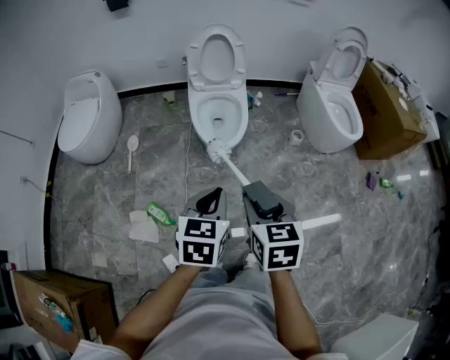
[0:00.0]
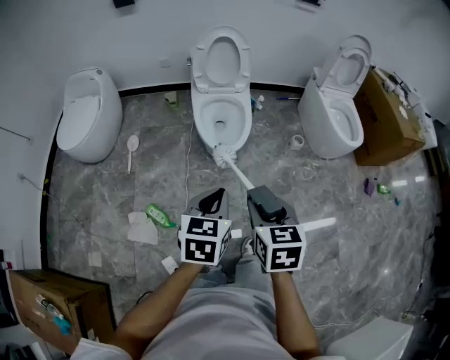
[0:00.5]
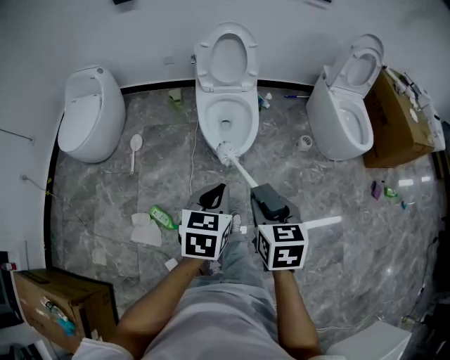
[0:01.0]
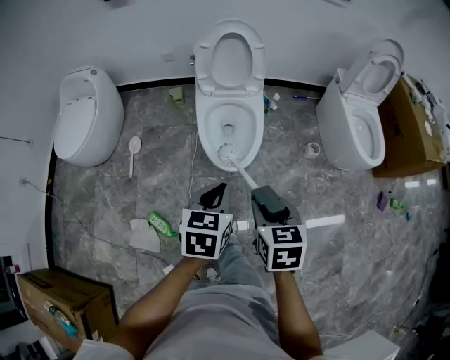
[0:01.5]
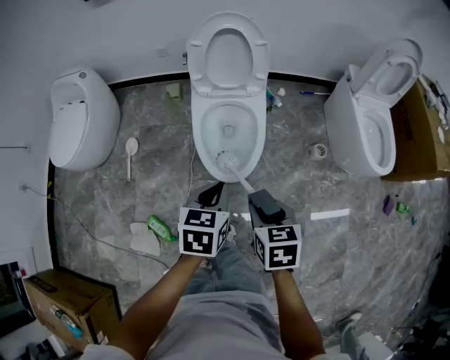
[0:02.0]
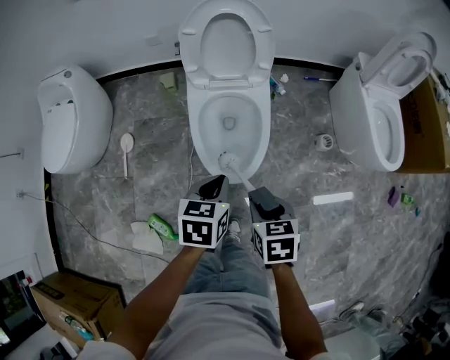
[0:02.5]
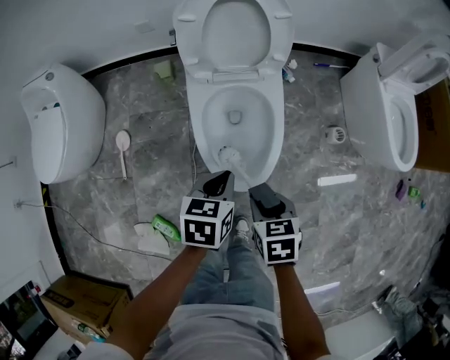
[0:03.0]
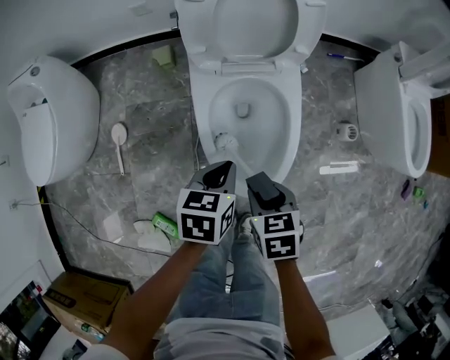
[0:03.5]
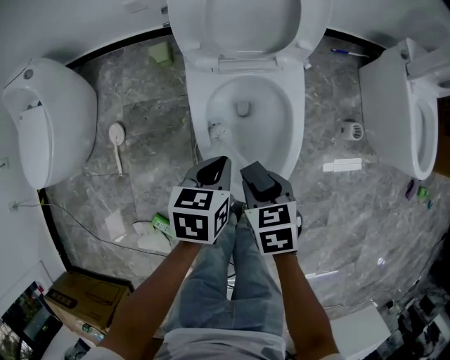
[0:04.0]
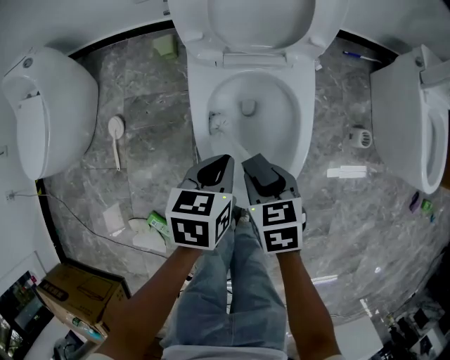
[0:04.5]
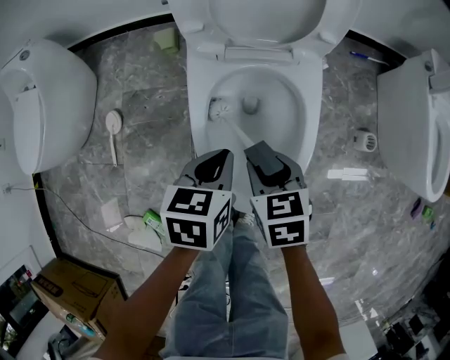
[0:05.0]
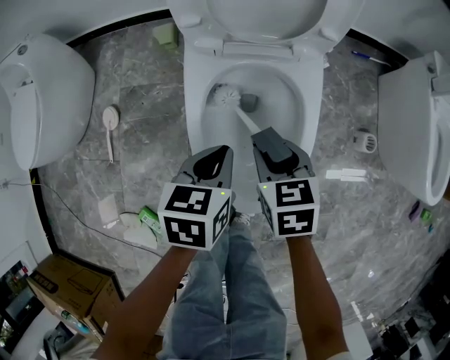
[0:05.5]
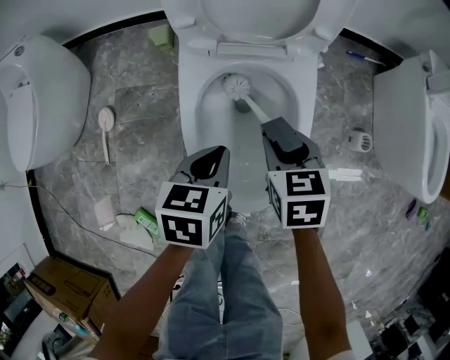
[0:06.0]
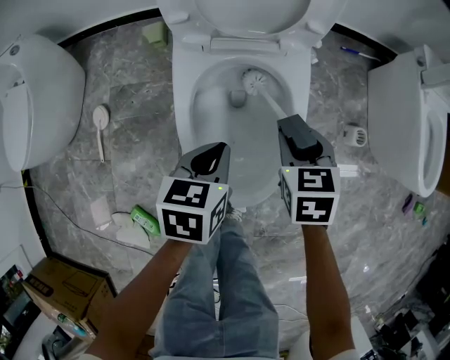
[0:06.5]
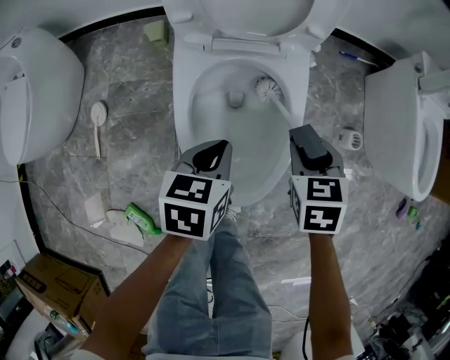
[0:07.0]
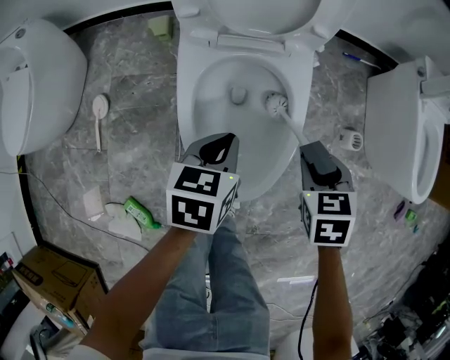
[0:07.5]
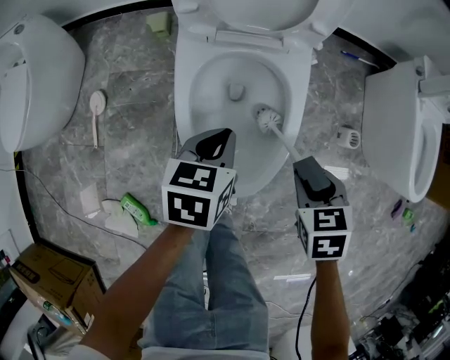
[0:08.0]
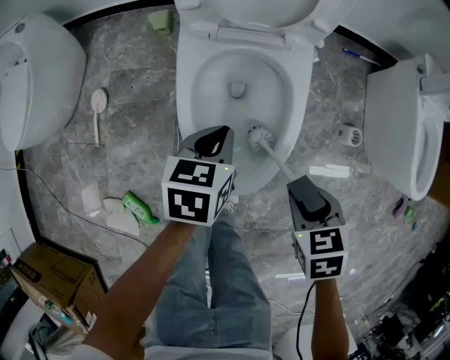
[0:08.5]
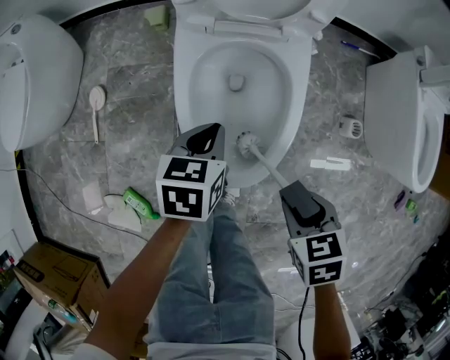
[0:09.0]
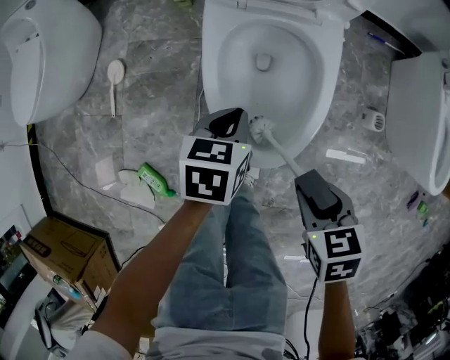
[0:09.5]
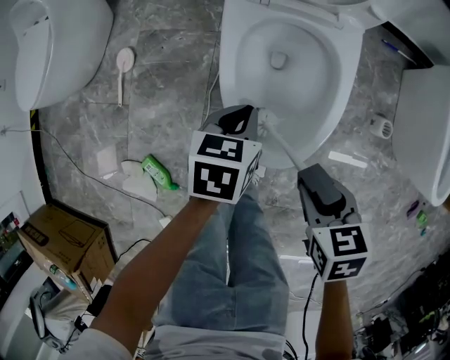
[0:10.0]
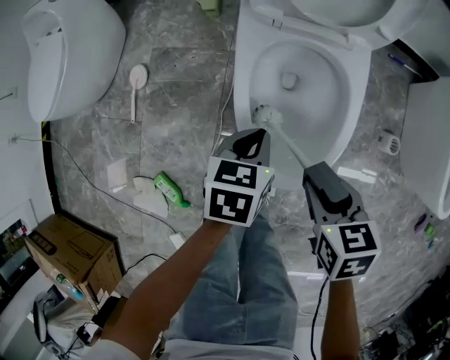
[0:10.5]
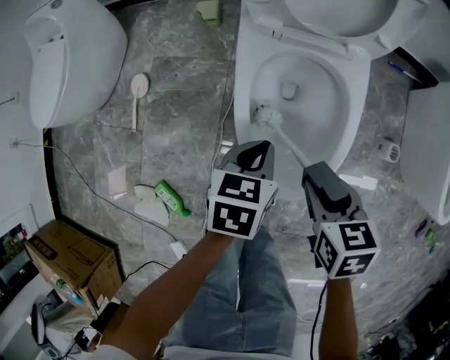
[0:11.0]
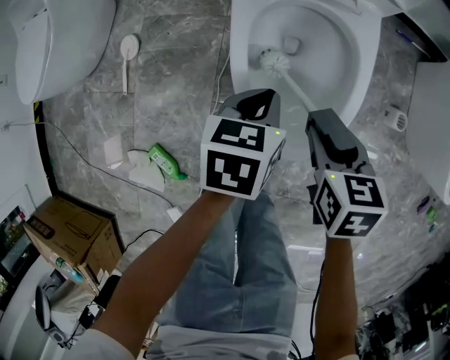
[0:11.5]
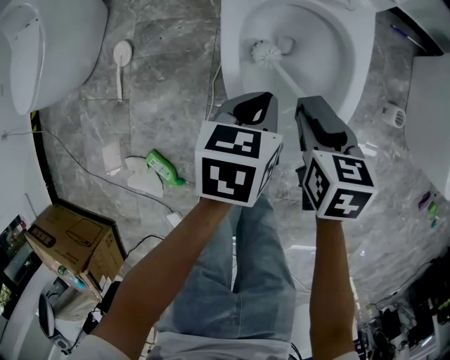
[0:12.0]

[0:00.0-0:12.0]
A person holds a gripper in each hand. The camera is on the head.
0:00.0 to 0:02.0: The left gripper travels forward by approximately 30 cm; the right gripper shifts some 35 cm forward and downward.
0:02.0 to 0:04.0: The left gripper is displaced downward and forward by approximately 30 cm. Meanwhile the right gripper moves downward, forward and to the left, some 35 cm.
0:04.0 to 0:06.0: The right gripper is displaced forward and to the right by about 10 cm, while the left gripper is displaced downward by about 5 cm.
0:06.0 to 0:08.0: The right gripper shifts about 15 cm to the right and backward.
0:08.0 to 0:10.0: The right gripper shifts some 10 cm to the left and backward. The left gripper moves to the left, approximately 5 cm.
0:10.0 to 0:12.0: The right gripper moves forward and downward, some 10 cm.

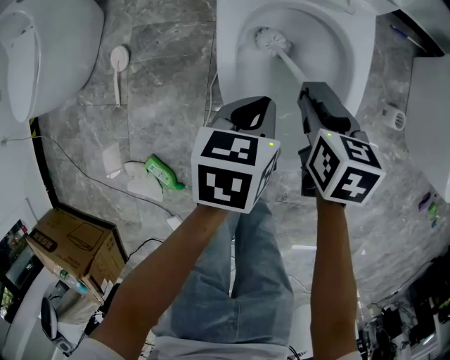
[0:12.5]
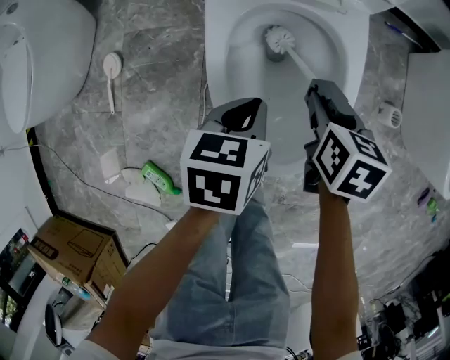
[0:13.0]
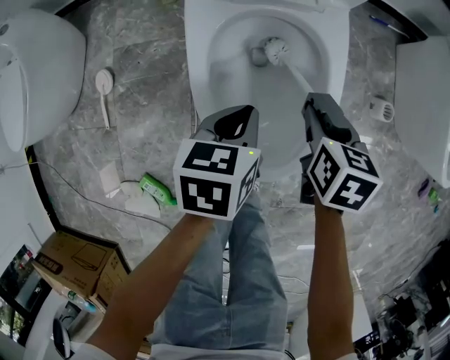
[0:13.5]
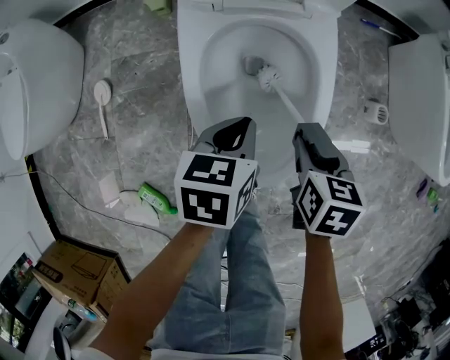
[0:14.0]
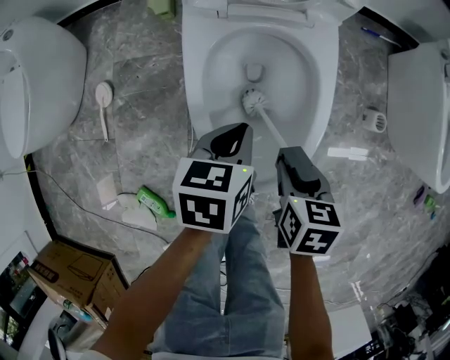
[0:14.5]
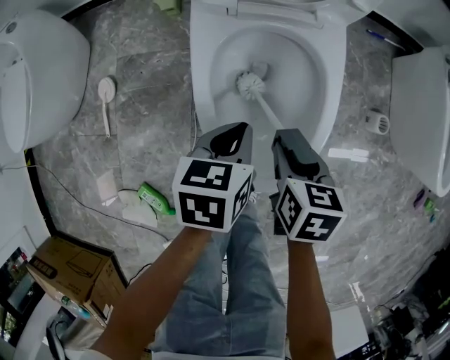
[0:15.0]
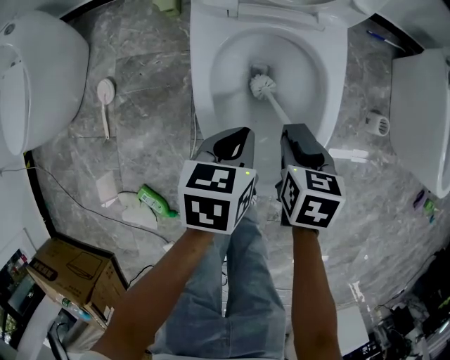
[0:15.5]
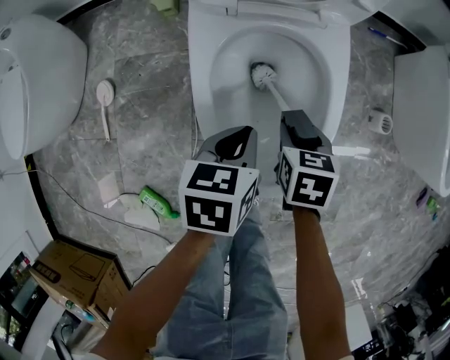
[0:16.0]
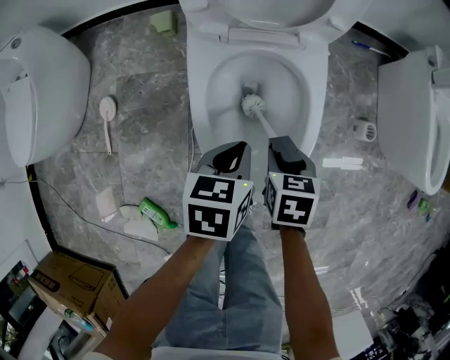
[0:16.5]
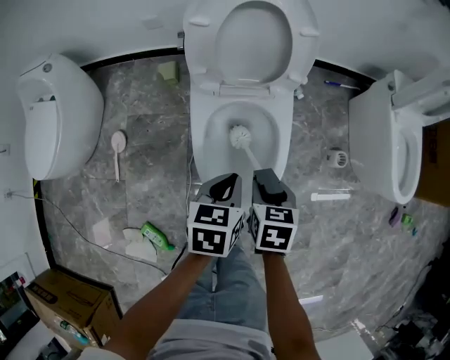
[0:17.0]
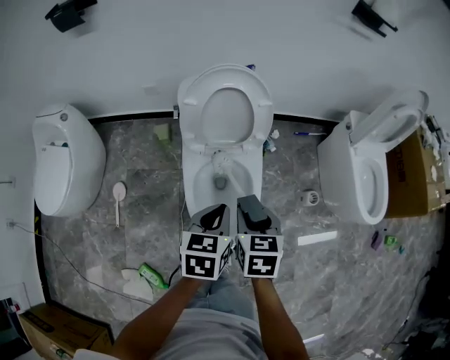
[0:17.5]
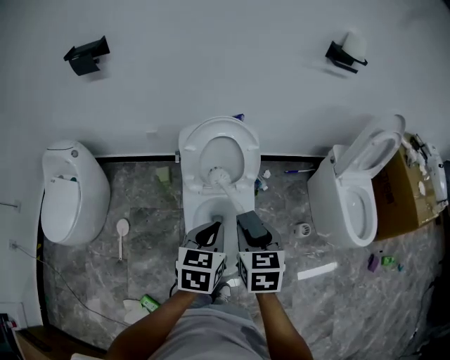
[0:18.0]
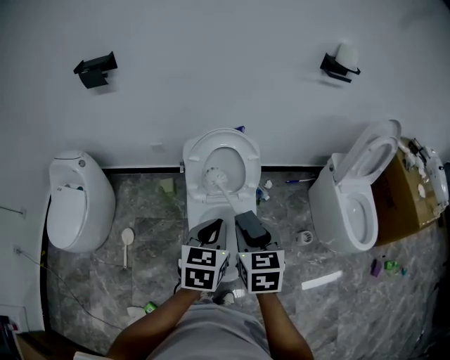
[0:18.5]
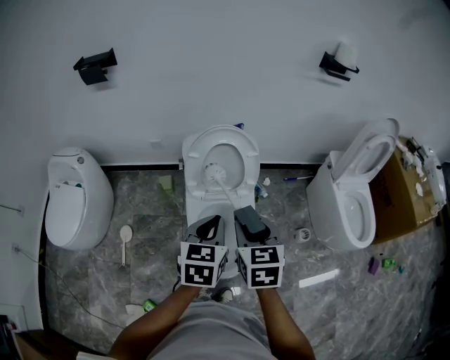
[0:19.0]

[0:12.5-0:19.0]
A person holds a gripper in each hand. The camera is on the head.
0:12.5 to 0:14.5: The right gripper moves backward and to the right, some 10 cm.
0:14.5 to 0:17.0: The grippers both shift upward by about 15 cm.
0:17.0 to 0:19.0: The two grippers go about 30 cm upward. The right gripper swivels roughly 30 degrees; the left gripper swivels roughly 20 degrees.

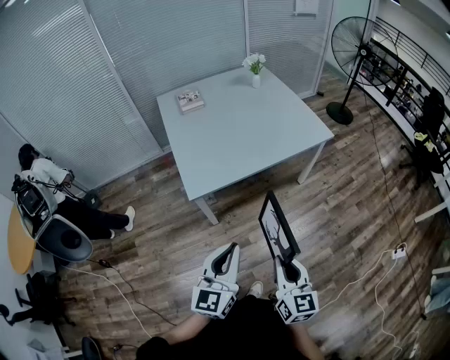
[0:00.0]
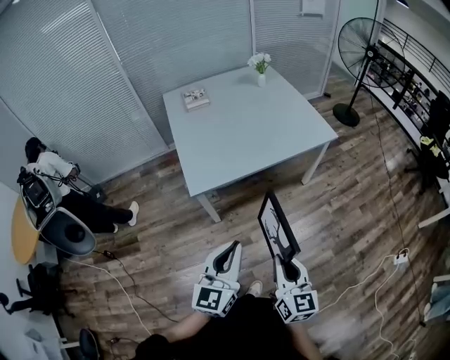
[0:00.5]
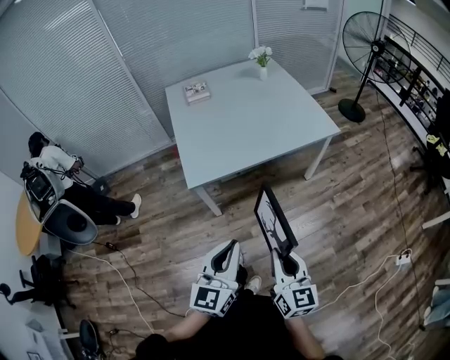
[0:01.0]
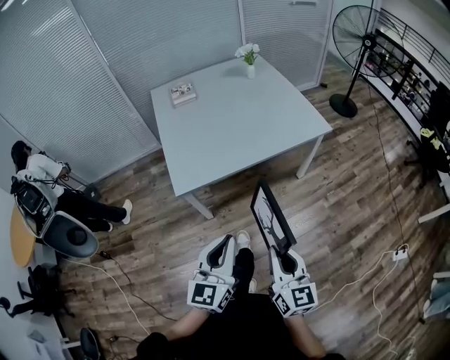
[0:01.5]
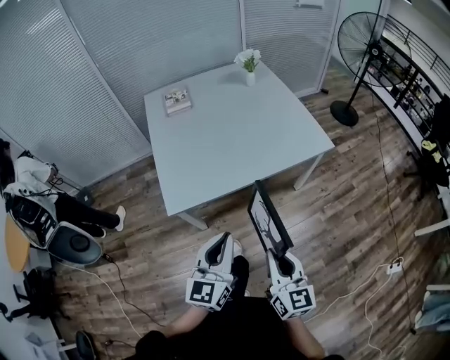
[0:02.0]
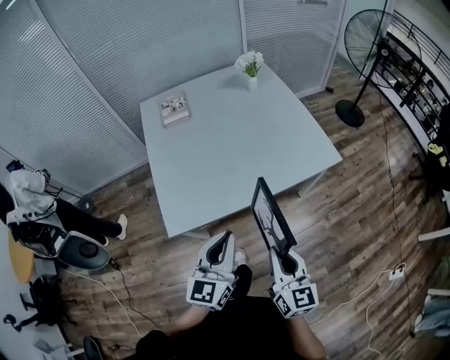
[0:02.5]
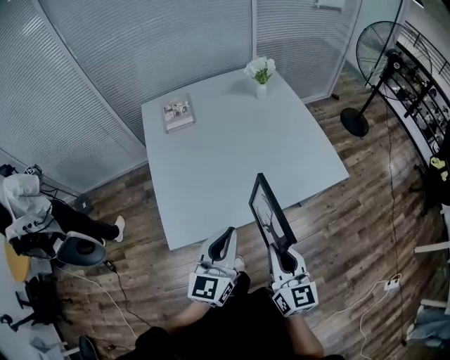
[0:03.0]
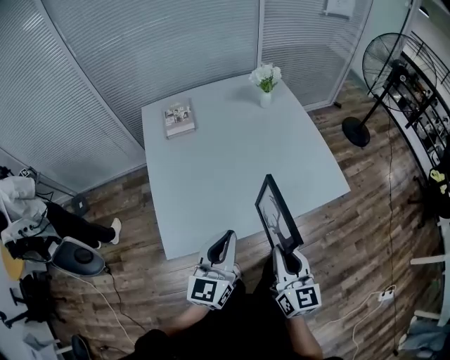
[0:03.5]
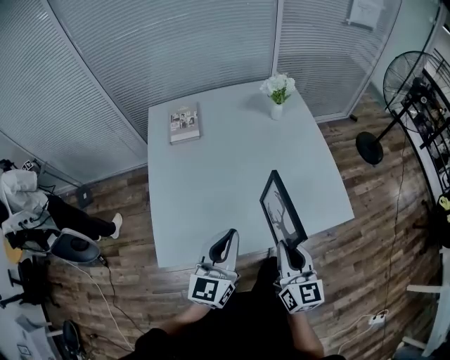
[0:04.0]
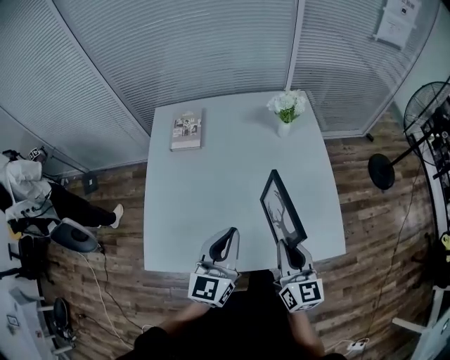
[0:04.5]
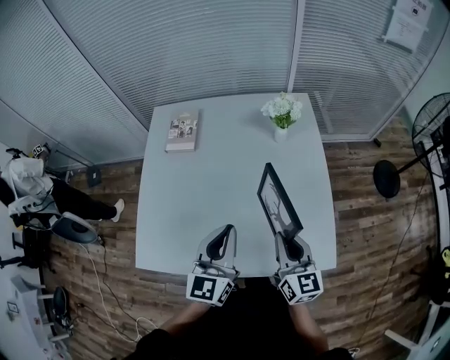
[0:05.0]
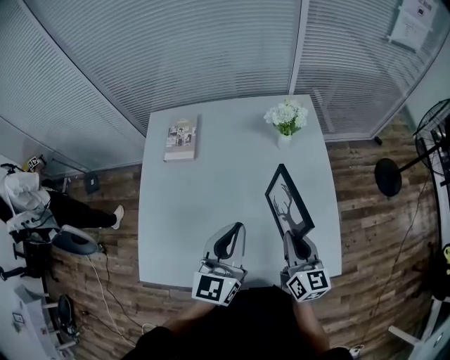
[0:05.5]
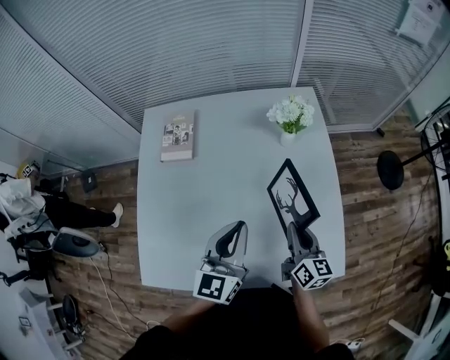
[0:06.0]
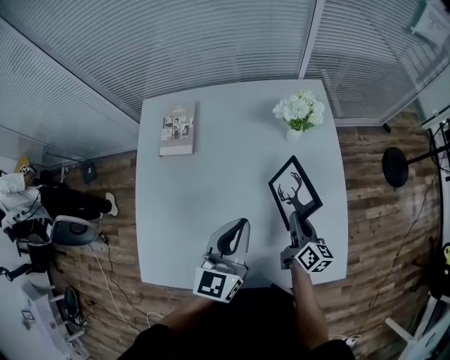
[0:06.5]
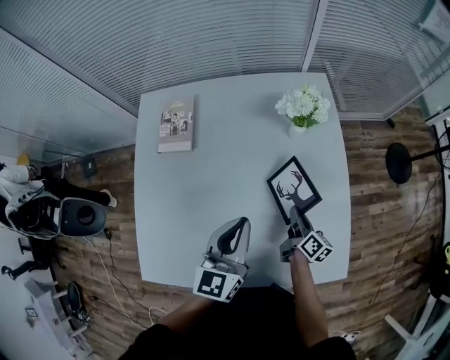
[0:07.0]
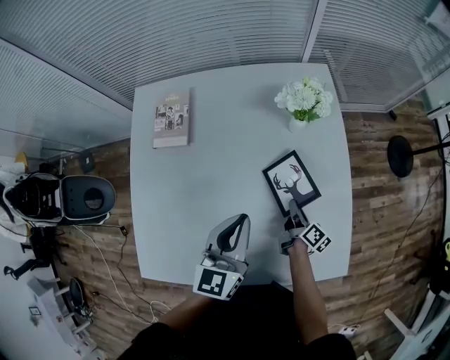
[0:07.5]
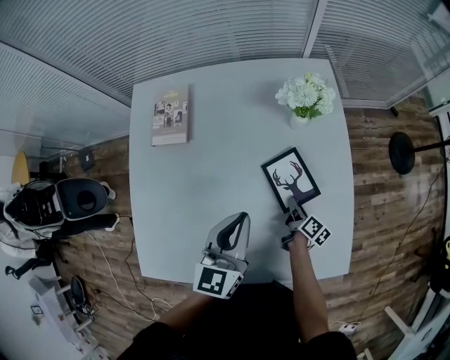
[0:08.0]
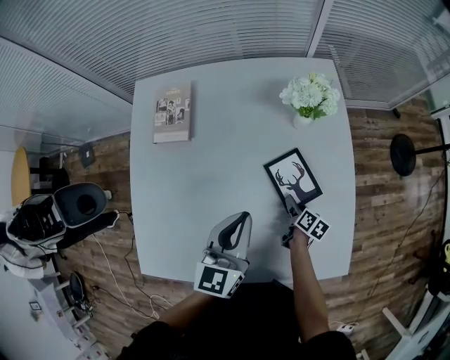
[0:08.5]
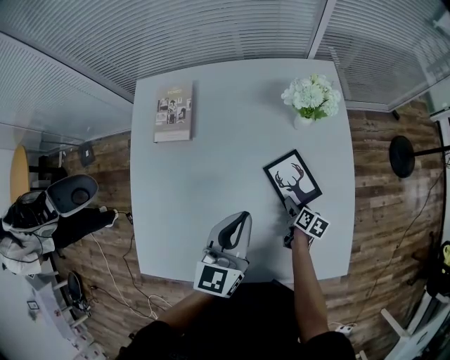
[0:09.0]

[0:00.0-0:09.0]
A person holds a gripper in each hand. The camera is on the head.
0:00.0 to 0:02.0: Both grippers move forward and to the right, approximately 20 cm.
0:02.0 to 0:04.5: Both grippers are carried forward, approximately 50 cm.
0:04.5 to 0:07.0: The right gripper travels forward and downward by about 35 cm, and twists roughly 40 degrees clockwise, seen from behind. The left gripper shifts about 20 cm forward.
0:07.0 to 0:09.0: The right gripper travels downward by about 10 cm, changes its angle by some 30 degrees, and opens up.
